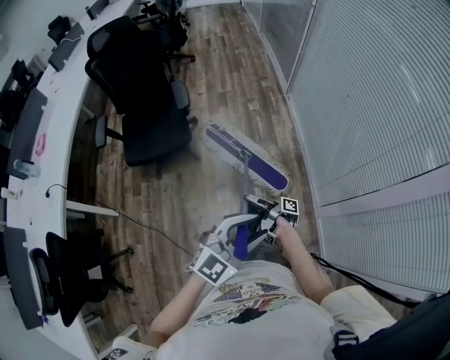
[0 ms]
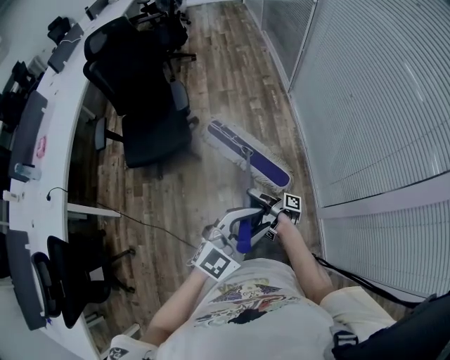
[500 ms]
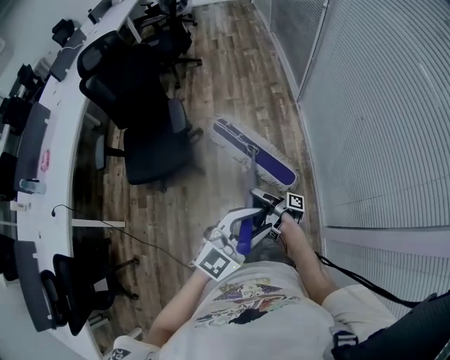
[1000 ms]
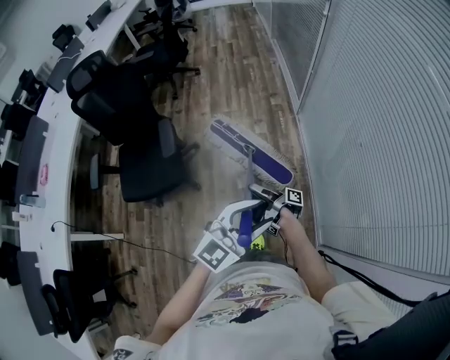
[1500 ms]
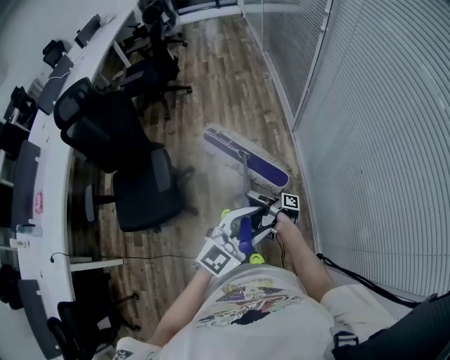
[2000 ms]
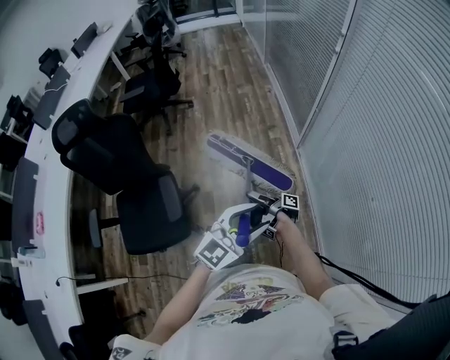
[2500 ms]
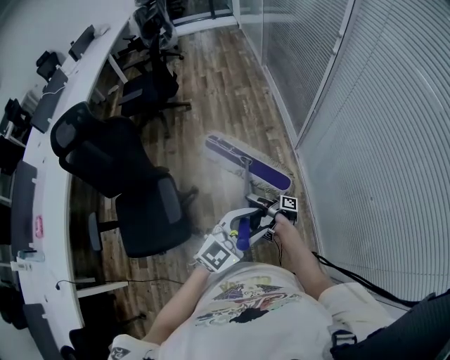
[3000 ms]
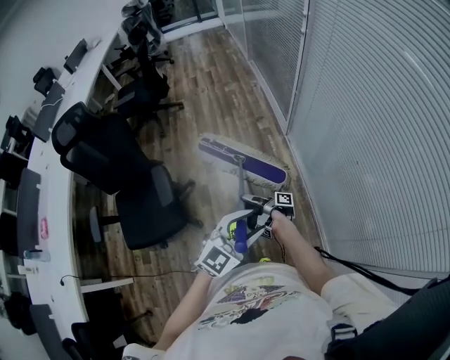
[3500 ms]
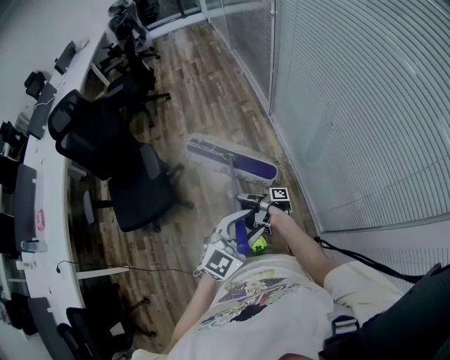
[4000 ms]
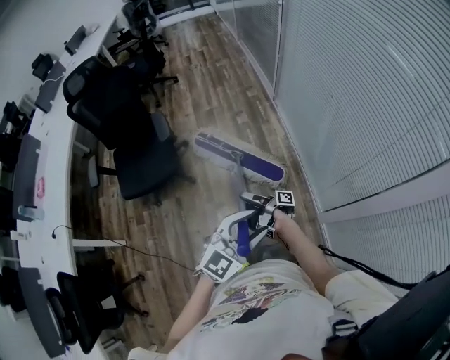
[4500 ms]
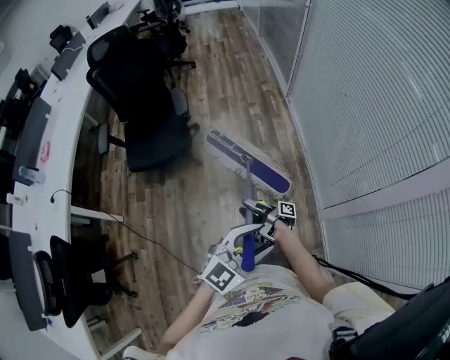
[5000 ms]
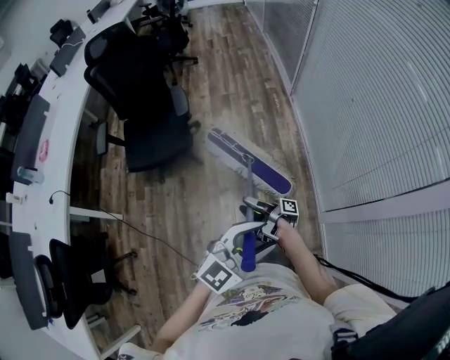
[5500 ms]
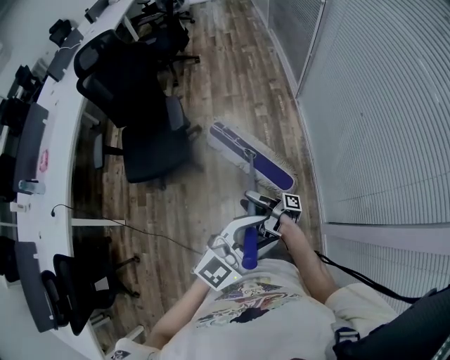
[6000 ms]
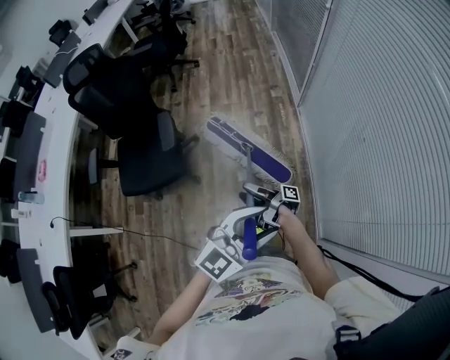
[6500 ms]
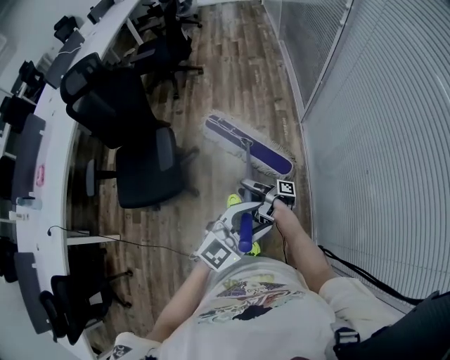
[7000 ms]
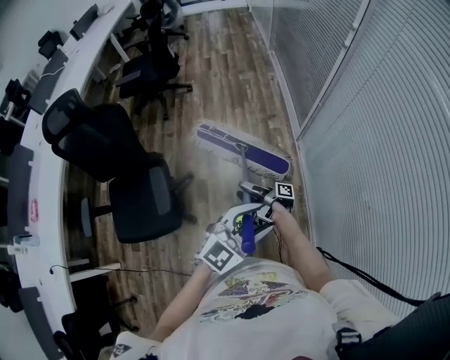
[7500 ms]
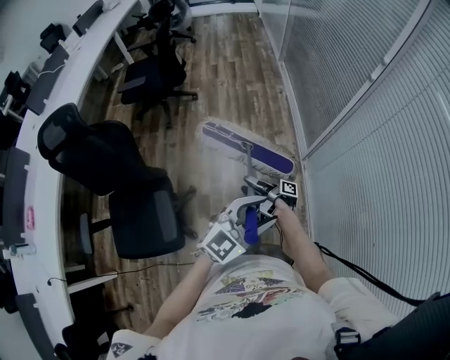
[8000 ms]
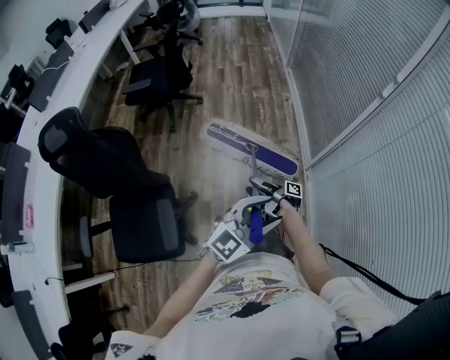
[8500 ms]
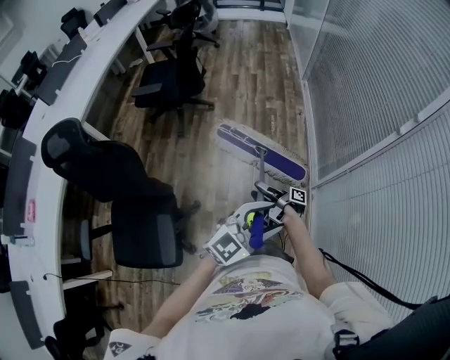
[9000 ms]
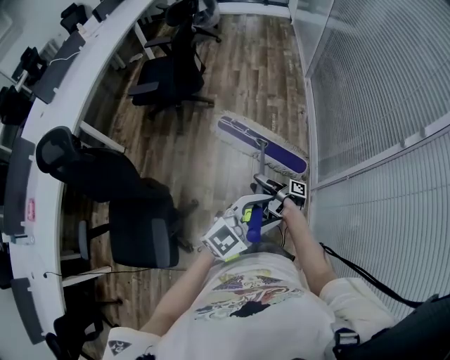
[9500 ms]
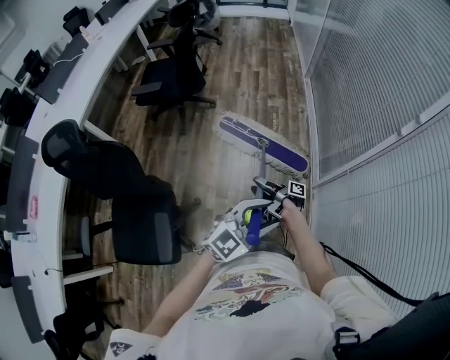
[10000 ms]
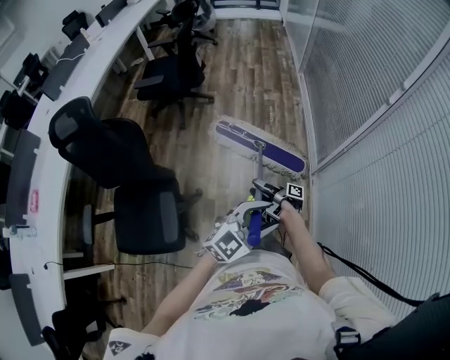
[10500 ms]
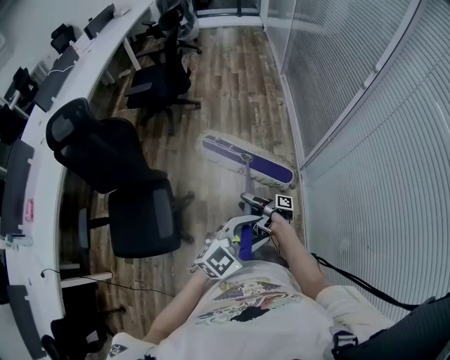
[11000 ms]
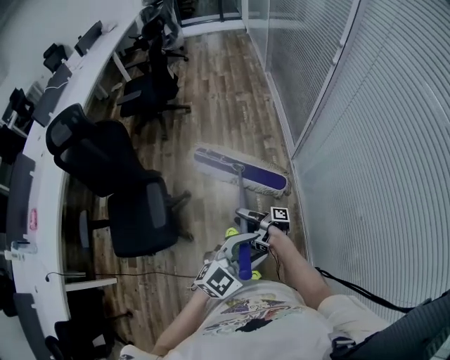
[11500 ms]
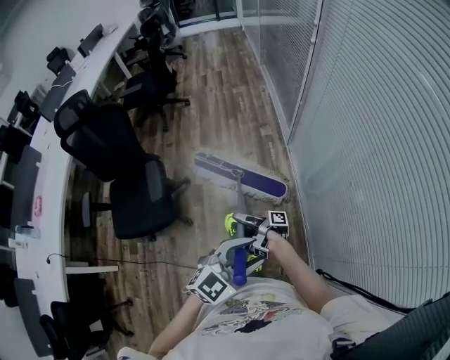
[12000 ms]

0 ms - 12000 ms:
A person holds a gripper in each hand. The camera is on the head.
0 ms - 2000 ms: The left gripper shifts by roughly 50 cm.
2000 ms - 4000 ms: The left gripper moves some 20 cm.
6000 ms - 8000 ms: The left gripper moves approximately 70 cm.
8000 ms - 10000 ms: The left gripper shifts by about 20 cm.
10000 ms - 12000 ms: The left gripper ends up roughly 60 cm from where it was.

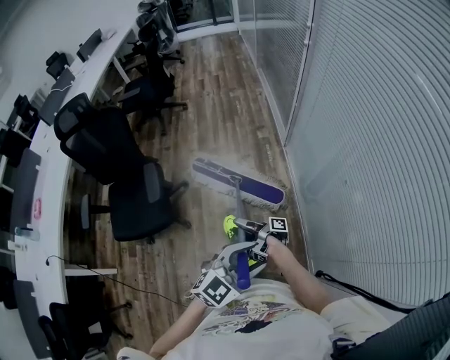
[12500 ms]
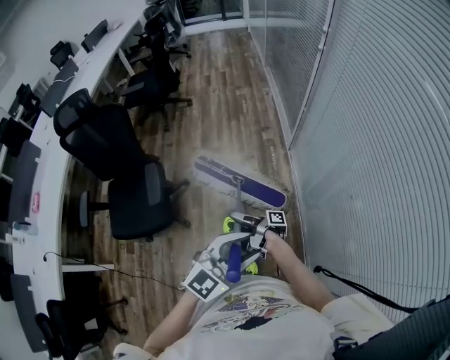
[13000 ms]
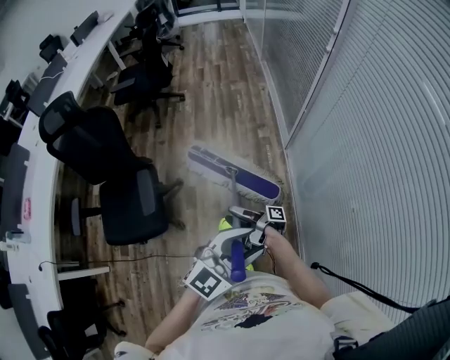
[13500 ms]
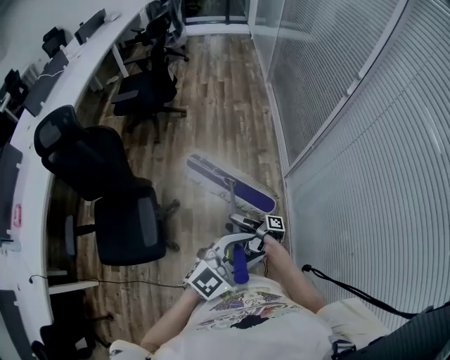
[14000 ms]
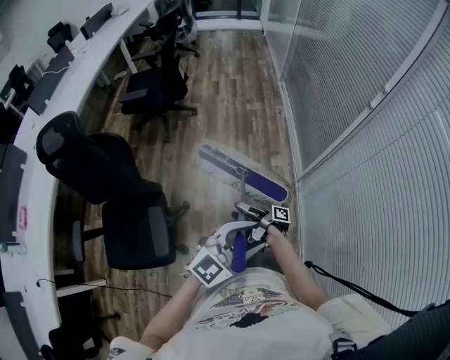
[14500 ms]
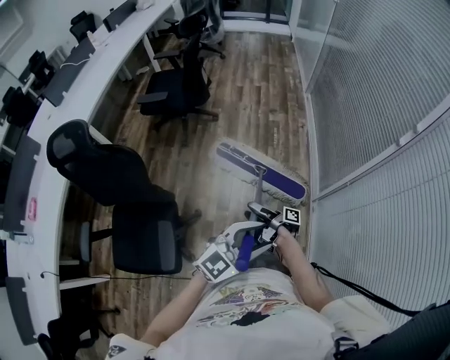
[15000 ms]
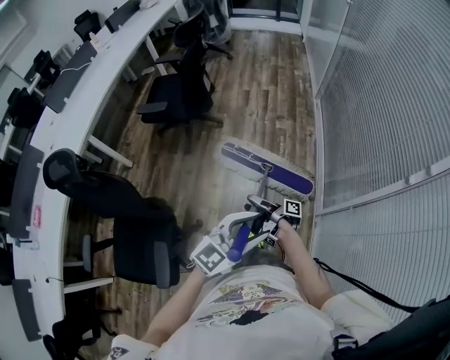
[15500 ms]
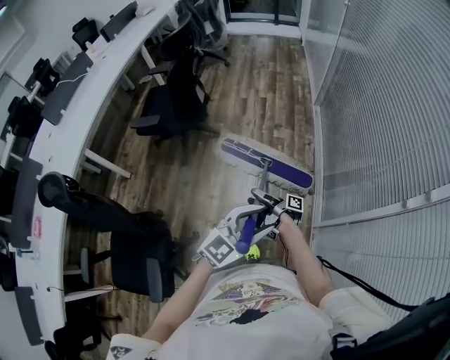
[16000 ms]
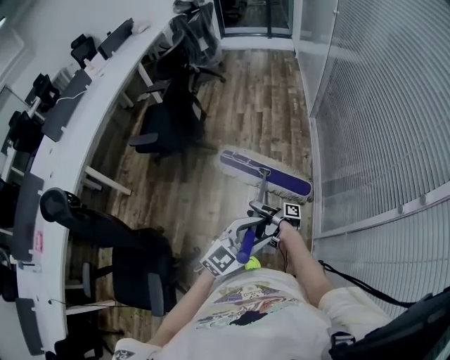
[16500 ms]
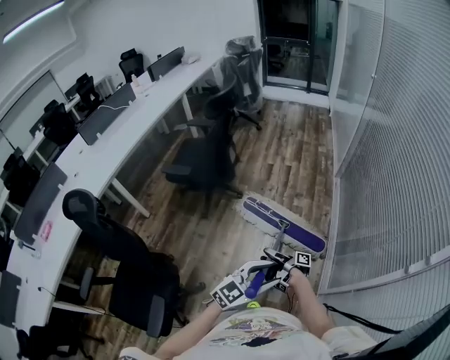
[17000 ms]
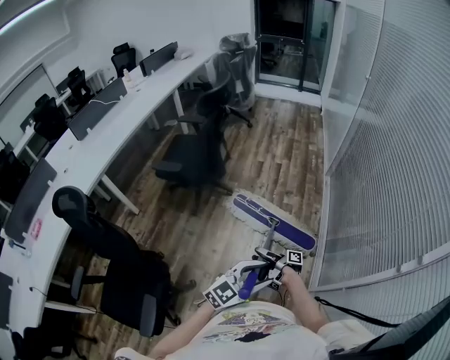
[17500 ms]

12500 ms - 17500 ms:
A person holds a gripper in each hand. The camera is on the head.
12500 ms - 15000 ms: The left gripper moves some 60 cm.
15000 ms - 17500 ms: The left gripper changes place by about 30 cm.

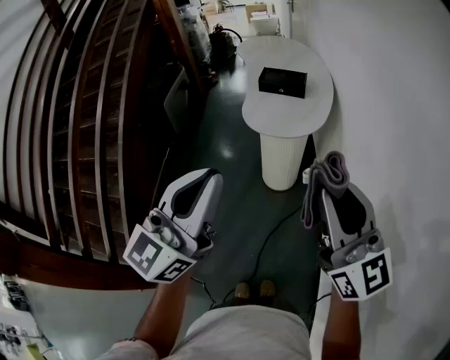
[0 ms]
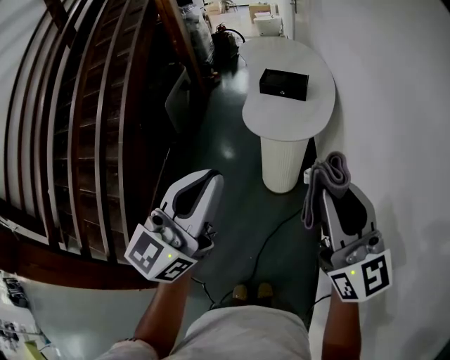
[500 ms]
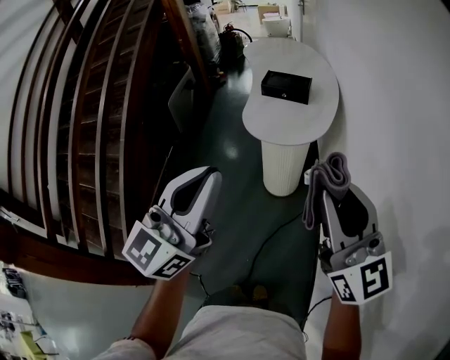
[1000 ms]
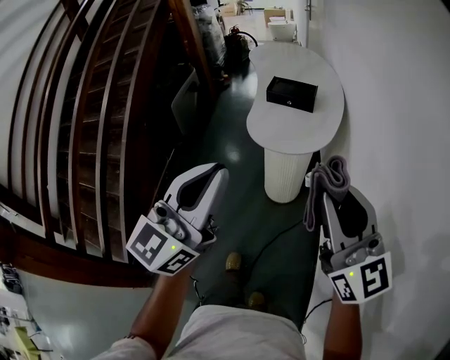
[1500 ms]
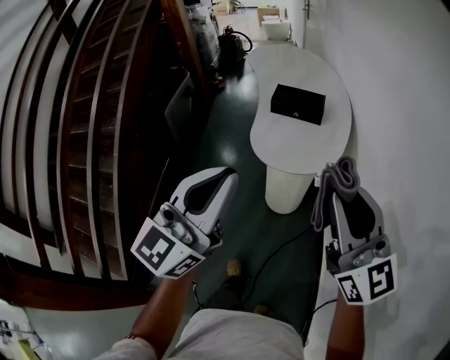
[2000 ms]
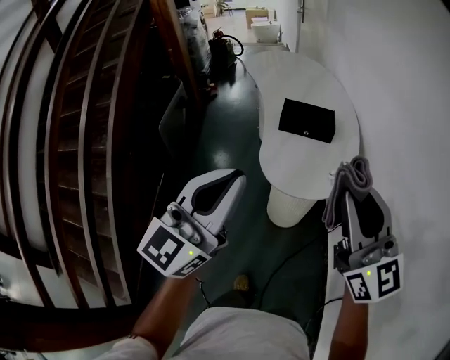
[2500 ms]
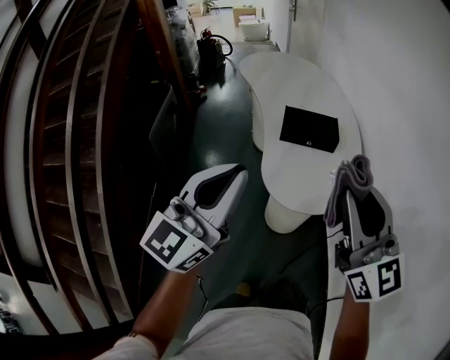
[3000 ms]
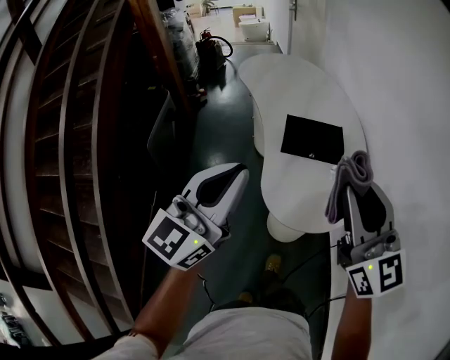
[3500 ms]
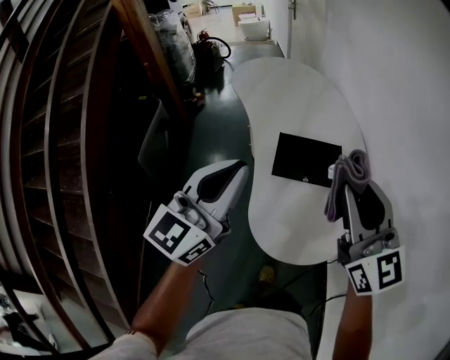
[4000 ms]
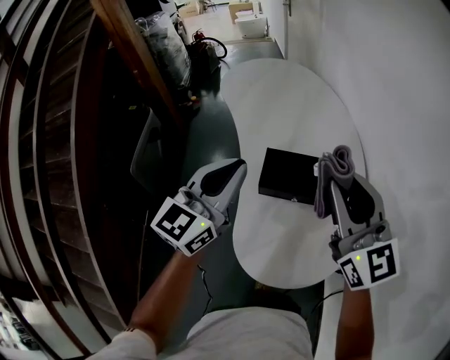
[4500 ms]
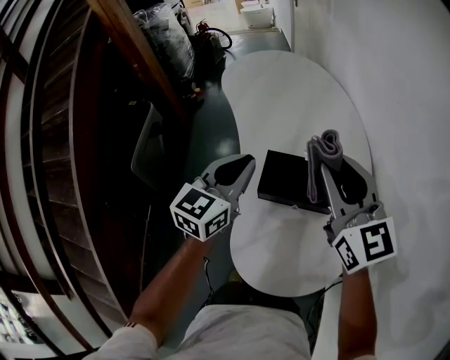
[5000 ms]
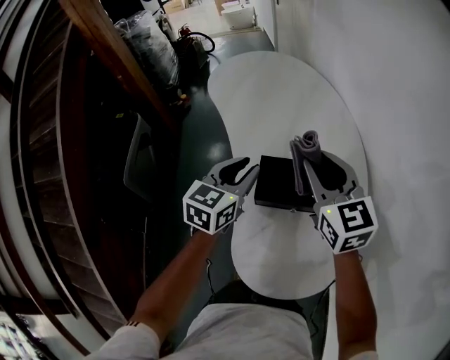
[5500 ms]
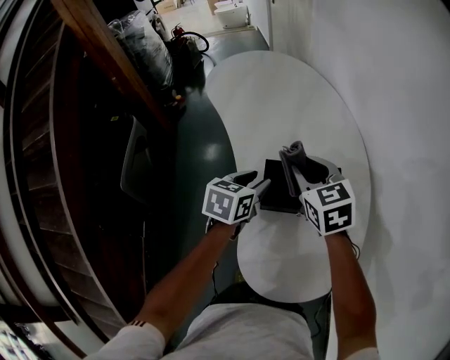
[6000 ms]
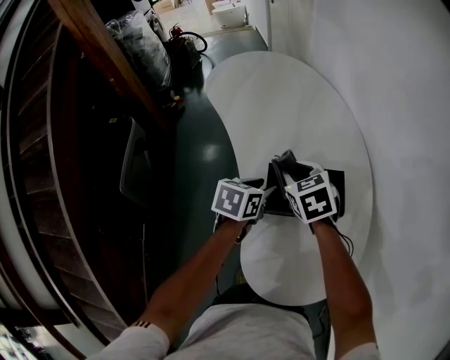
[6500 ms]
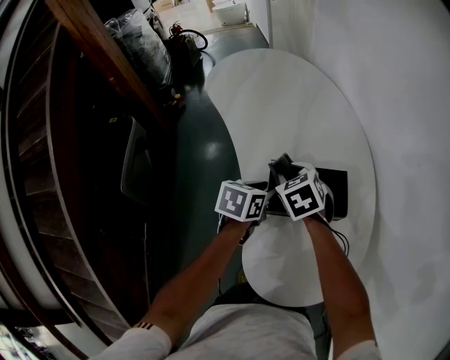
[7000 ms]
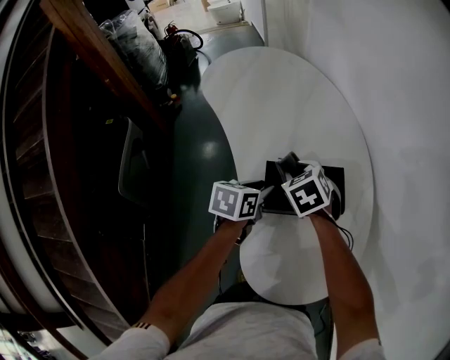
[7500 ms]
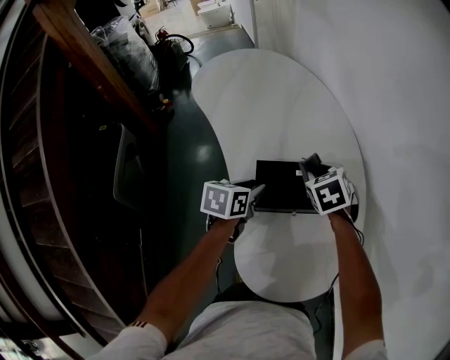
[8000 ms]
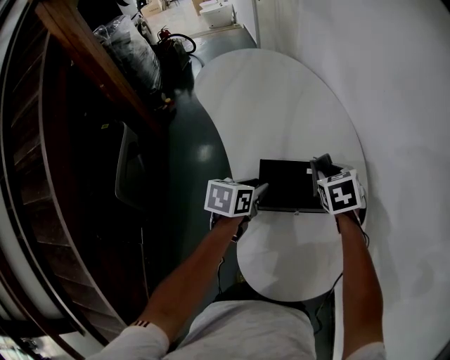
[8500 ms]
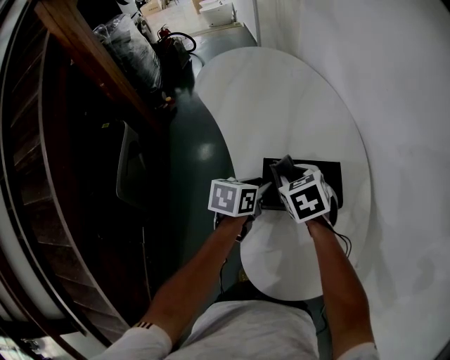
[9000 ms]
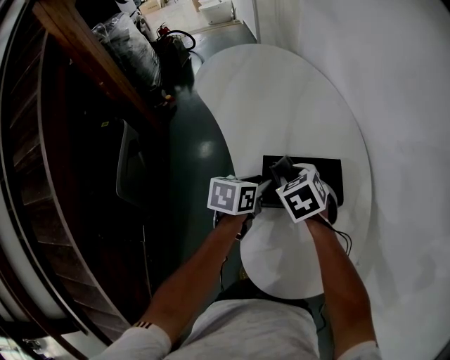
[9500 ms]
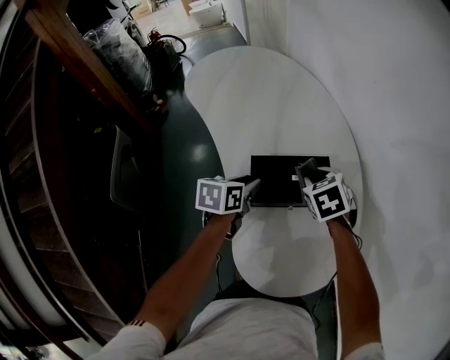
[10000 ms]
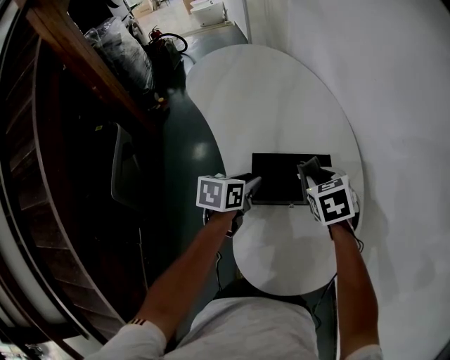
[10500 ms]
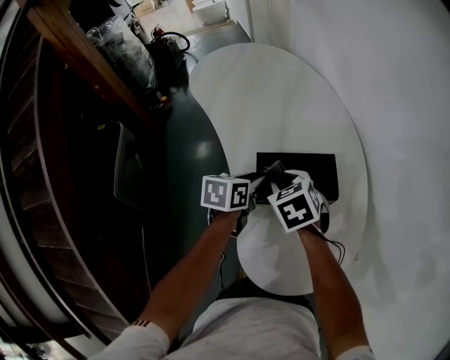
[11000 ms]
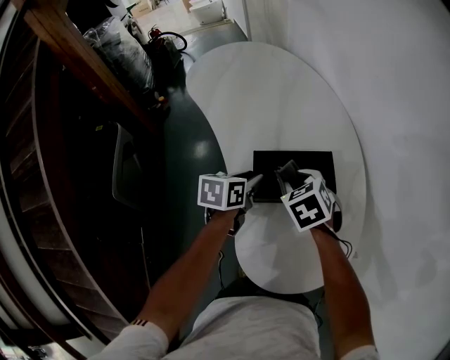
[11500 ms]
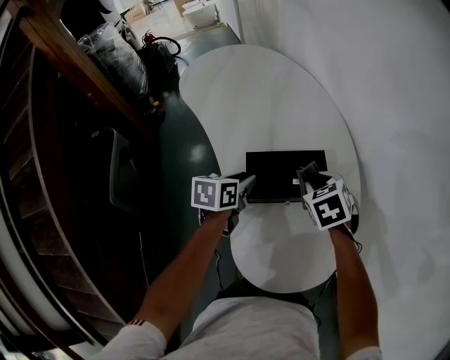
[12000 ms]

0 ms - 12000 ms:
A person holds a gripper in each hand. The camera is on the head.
0 ms - 2000 ms: Both grippers move forward, approximately 15 cm.
2000 ms - 4000 ms: Both grippers travel together forward, some 40 cm.
4000 ms - 6000 ms: The two grippers go some 35 cm forward and downward. The right gripper points its fingers roughly 40 degrees further downward. The left gripper tilts its fingers some 40 degrees downward, and opens.
6000 ms - 8000 ms: The right gripper moves downward and to the right, roughly 10 cm, and changes its angle by approximately 30 degrees.
8000 ms - 10000 ms: The right gripper reaches some 10 cm to the left, then returns.
10000 ms - 12000 ms: The right gripper moves some 10 cm to the left and comes back.
